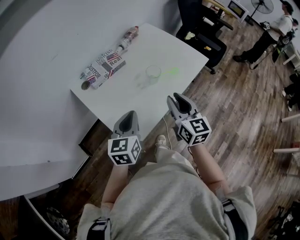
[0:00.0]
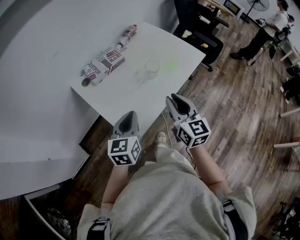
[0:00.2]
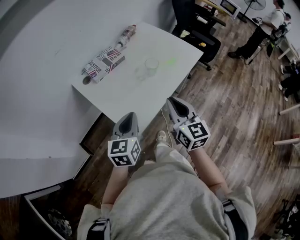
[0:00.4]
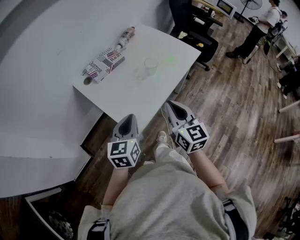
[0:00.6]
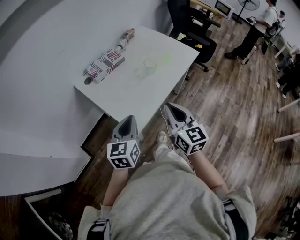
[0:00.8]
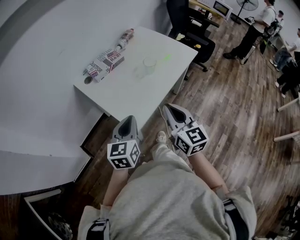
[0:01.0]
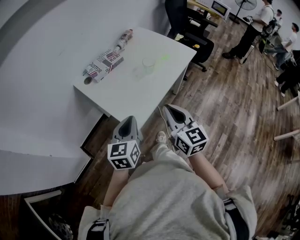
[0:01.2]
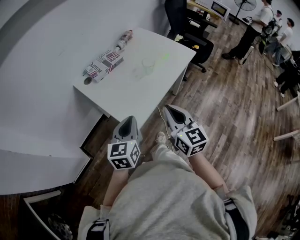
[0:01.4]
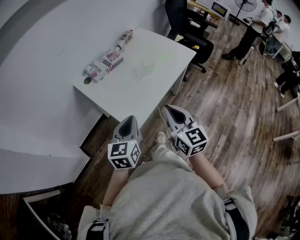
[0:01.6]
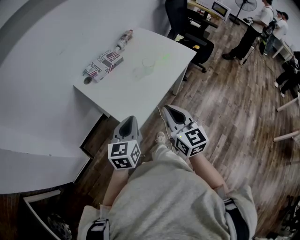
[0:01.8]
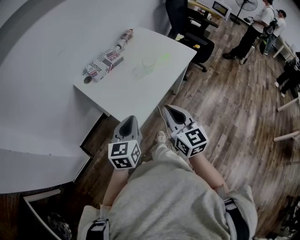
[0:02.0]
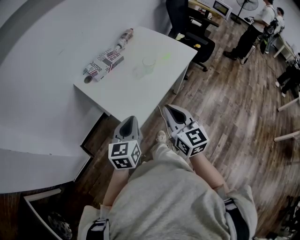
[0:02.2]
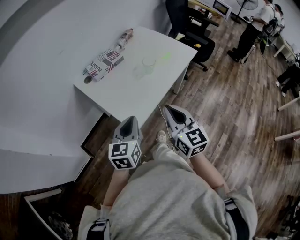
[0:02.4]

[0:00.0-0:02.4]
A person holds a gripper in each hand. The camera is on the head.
0:00.0 to 0:01.2: The grippers both shift backward by roughly 15 cm. The right gripper closes its fingers.
0:01.2 to 0:02.4: Both grippers stay put.

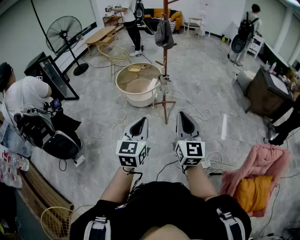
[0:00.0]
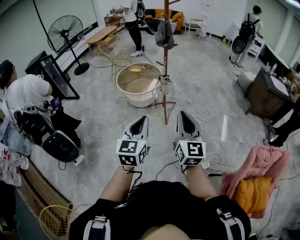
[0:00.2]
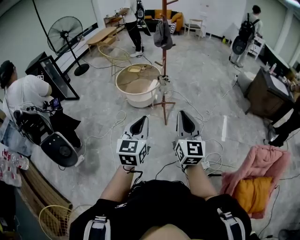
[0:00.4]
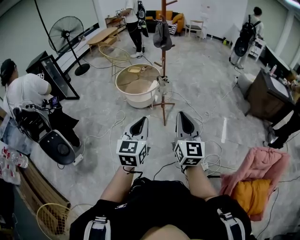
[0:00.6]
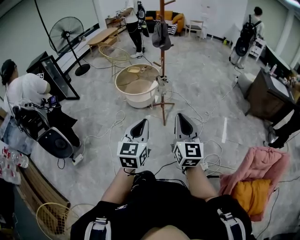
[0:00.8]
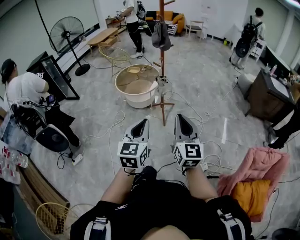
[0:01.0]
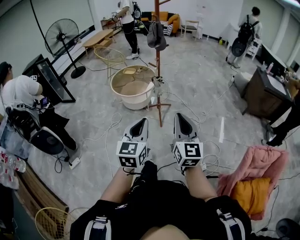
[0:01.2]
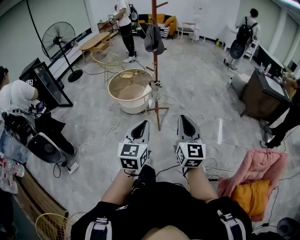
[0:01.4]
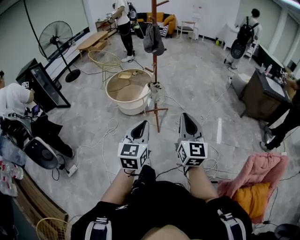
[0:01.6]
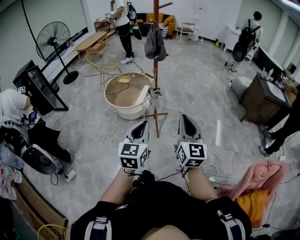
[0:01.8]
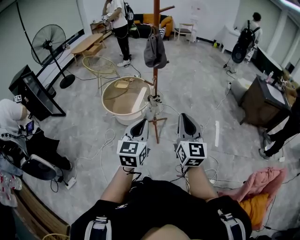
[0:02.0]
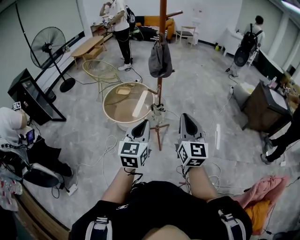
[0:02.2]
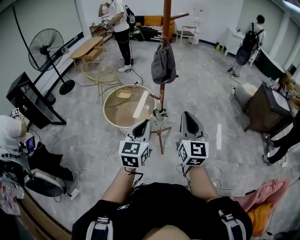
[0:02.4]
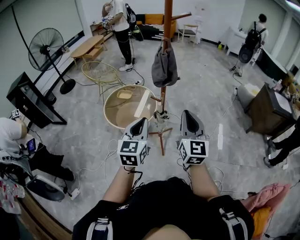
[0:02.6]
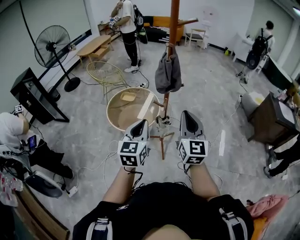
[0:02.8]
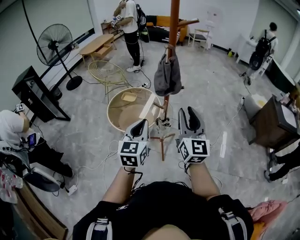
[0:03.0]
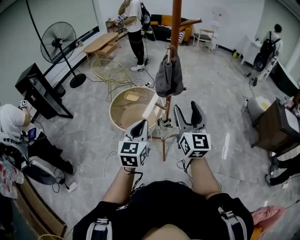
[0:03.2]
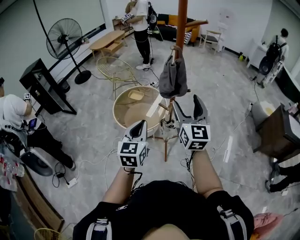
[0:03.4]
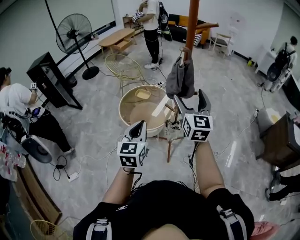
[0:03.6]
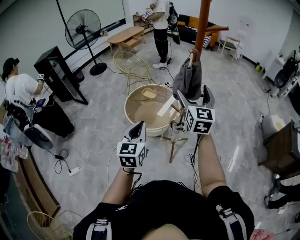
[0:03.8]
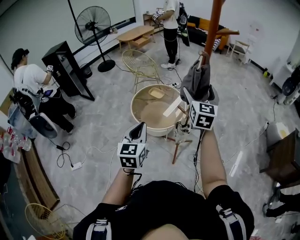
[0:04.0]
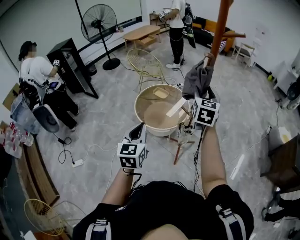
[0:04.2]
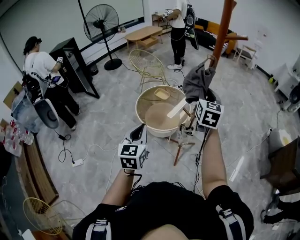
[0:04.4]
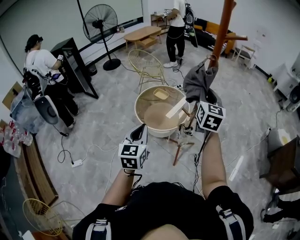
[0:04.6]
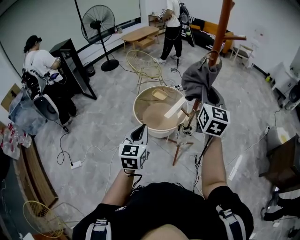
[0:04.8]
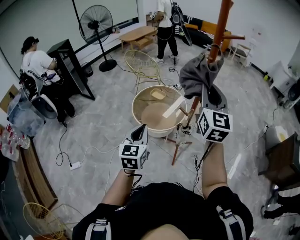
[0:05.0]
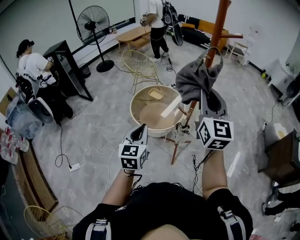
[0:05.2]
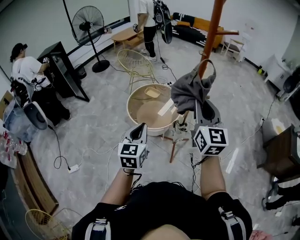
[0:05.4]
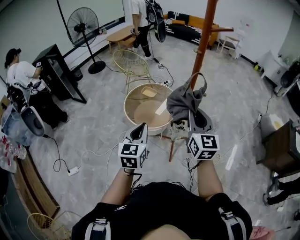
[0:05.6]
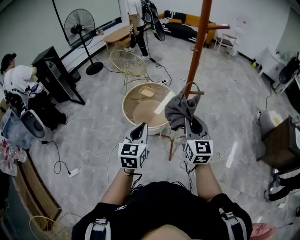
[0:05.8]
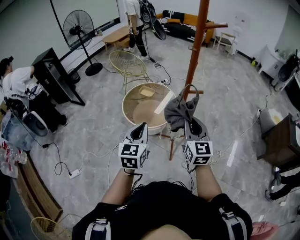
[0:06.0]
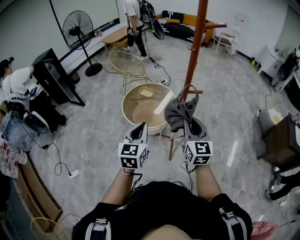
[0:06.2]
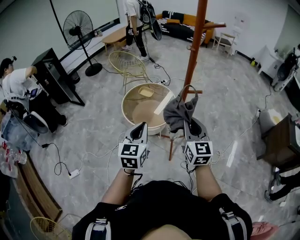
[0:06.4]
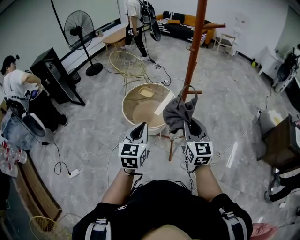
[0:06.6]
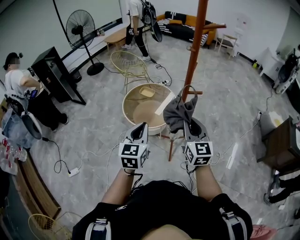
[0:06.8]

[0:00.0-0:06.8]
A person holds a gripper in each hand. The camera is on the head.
0:00.0 to 0:01.4: The grippers both shift to the right by some 10 cm.
0:01.4 to 0:02.8: The pair of grippers is taken forward, roughly 60 cm.
0:02.8 to 0:04.0: The right gripper goes about 25 cm forward, and opens, while the left gripper changes place by approximately 5 cm, and changes its angle by roughly 20 degrees.
0:04.0 to 0:05.4: The right gripper travels backward by some 10 cm, and closes its fingers.
0:05.4 to 0:06.8: The right gripper travels downward by roughly 10 cm.

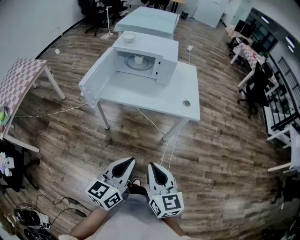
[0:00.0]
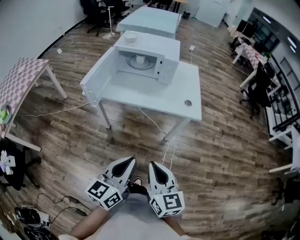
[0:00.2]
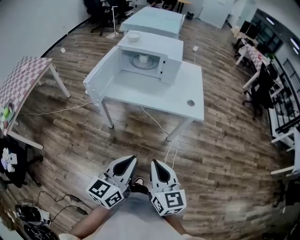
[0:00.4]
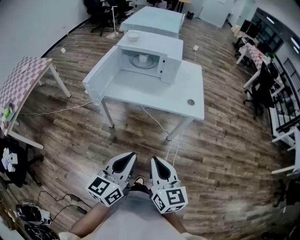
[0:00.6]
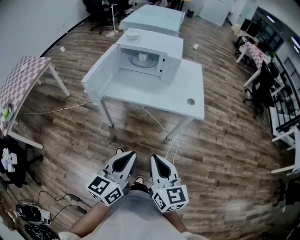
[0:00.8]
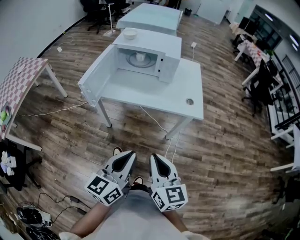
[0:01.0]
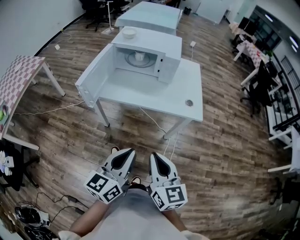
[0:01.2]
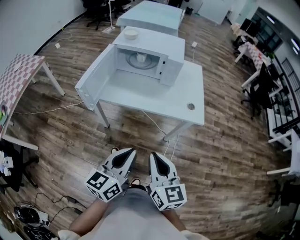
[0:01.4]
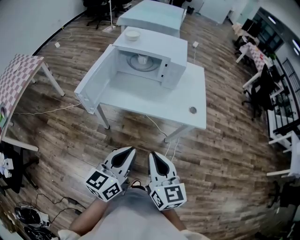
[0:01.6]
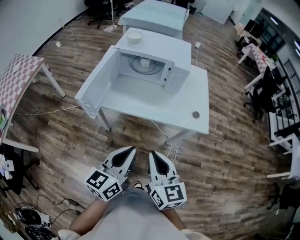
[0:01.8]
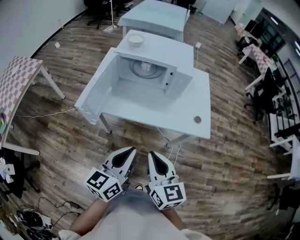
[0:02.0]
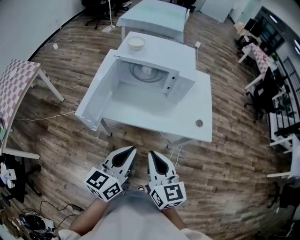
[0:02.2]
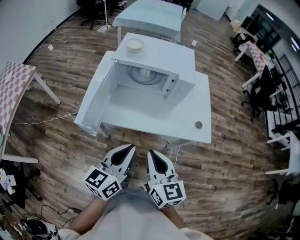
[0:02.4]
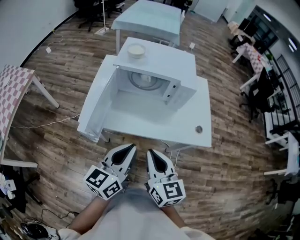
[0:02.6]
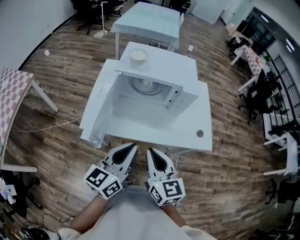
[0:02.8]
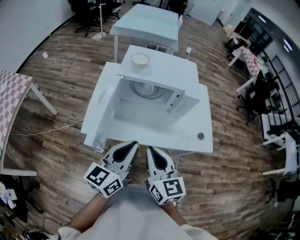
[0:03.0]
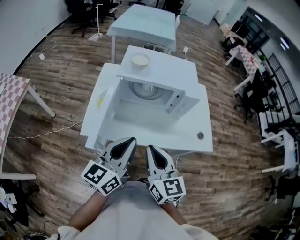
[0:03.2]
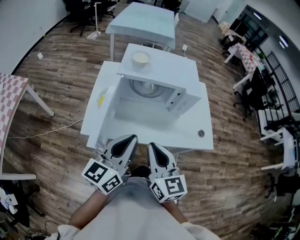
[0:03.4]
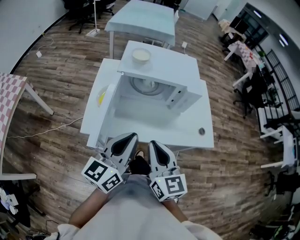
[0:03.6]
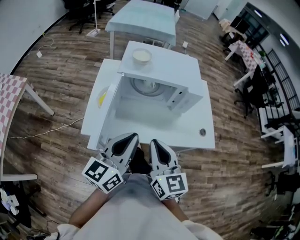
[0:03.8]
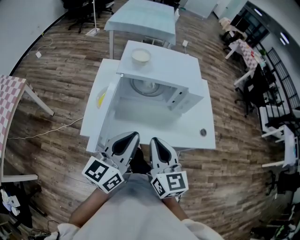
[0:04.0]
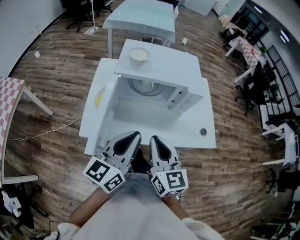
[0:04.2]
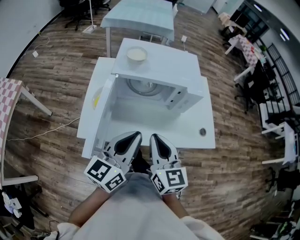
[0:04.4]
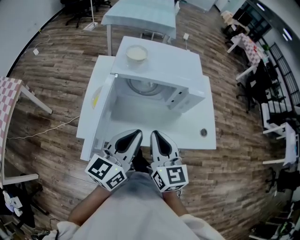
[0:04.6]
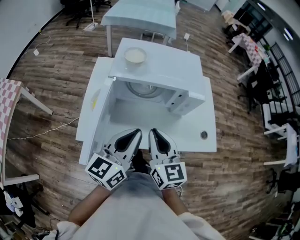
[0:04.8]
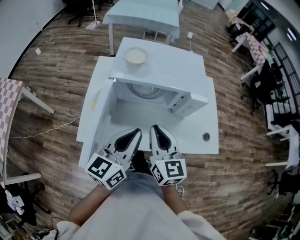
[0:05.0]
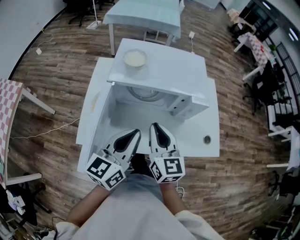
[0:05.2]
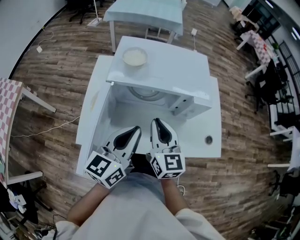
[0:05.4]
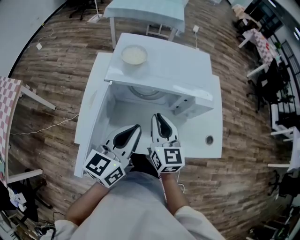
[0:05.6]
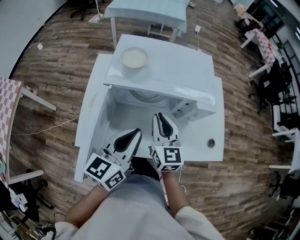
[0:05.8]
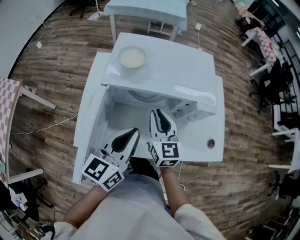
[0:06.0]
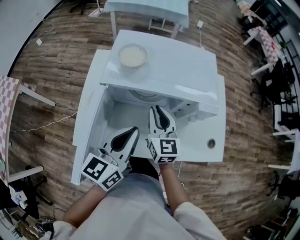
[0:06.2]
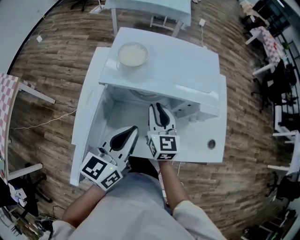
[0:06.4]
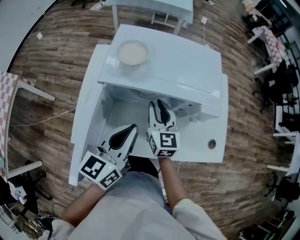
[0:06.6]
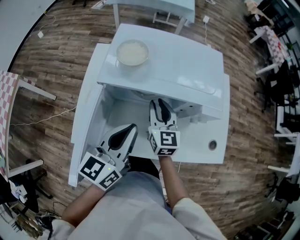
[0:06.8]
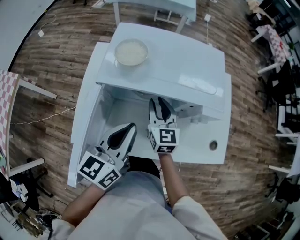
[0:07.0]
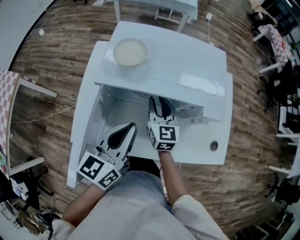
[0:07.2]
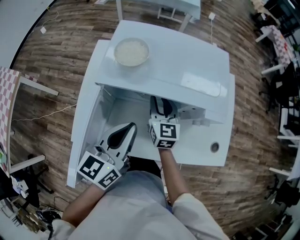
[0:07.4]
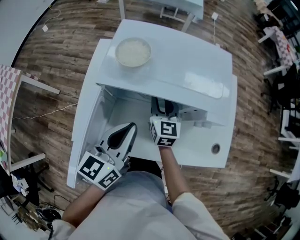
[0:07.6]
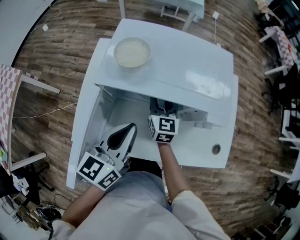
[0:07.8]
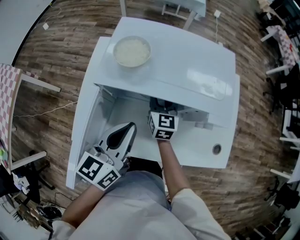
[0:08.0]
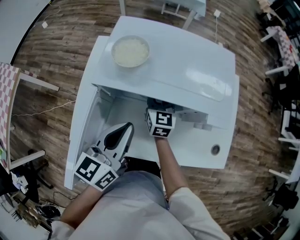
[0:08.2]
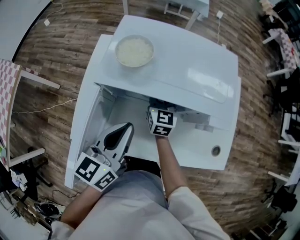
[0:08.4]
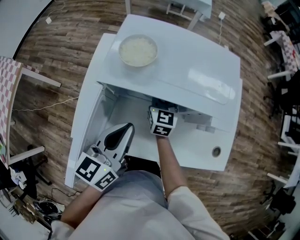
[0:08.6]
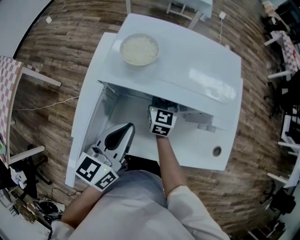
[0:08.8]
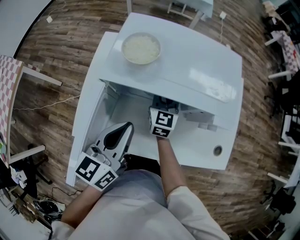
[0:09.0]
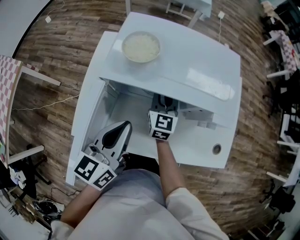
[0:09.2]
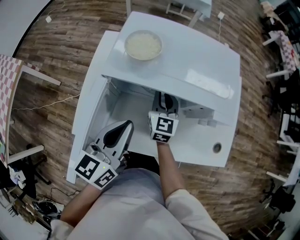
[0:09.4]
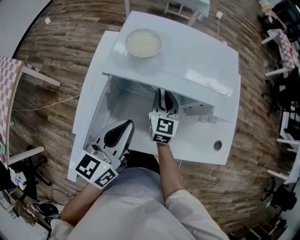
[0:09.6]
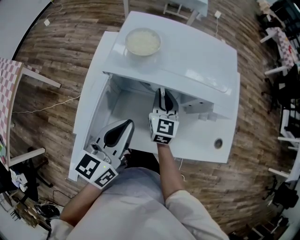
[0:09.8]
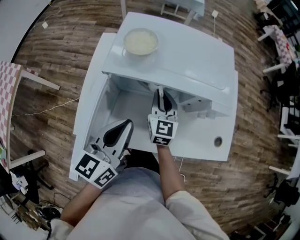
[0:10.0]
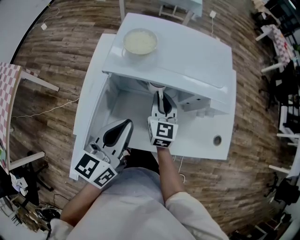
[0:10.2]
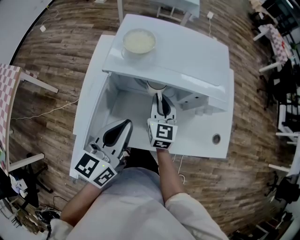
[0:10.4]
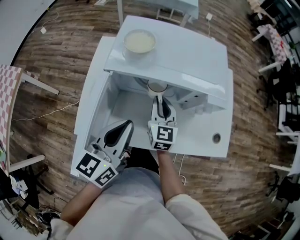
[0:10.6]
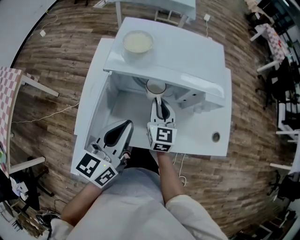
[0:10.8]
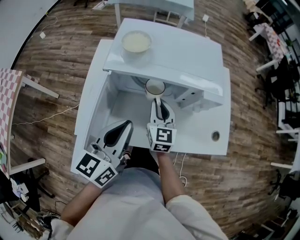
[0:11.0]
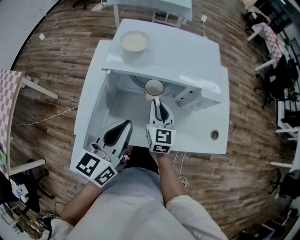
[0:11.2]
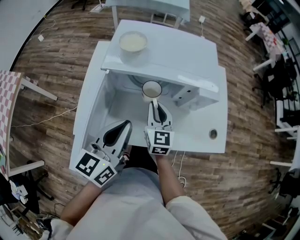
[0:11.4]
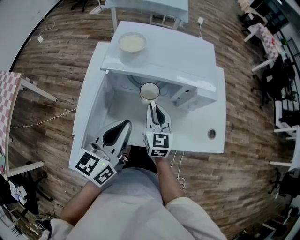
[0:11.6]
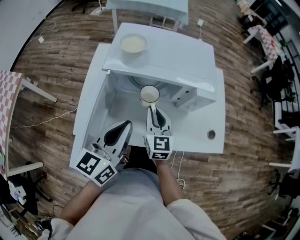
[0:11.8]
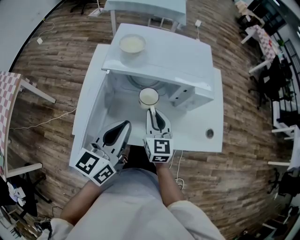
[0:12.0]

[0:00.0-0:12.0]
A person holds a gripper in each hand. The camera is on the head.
0:00.0 to 0:01.6: The grippers both shift forward by some 10 cm.
0:01.6 to 0:03.0: Both grippers move forward and to the left, some 25 cm.
0:03.0 to 0:04.4: Both grippers travel together forward, approximately 5 cm.
0:04.4 to 0:06.0: The right gripper is displaced forward and downward by some 20 cm; the left gripper goes approximately 10 cm forward.
0:06.0 to 0:07.6: The left gripper ends up roughly 5 cm from where it was. The right gripper goes about 15 cm forward and downward.
0:07.6 to 0:09.0: The grippers make only small movements.
0:09.0 to 0:10.4: The right gripper shifts roughly 10 cm backward.
0:10.4 to 0:12.0: The right gripper goes approximately 10 cm backward.

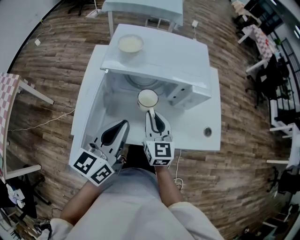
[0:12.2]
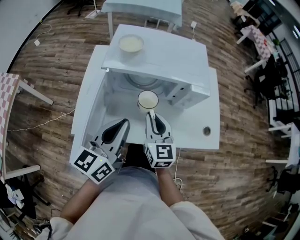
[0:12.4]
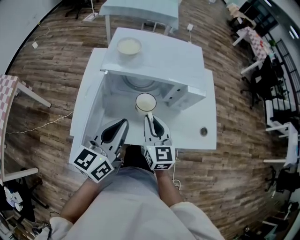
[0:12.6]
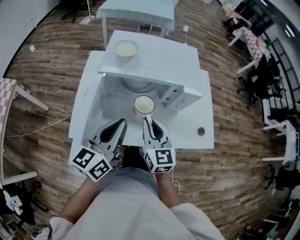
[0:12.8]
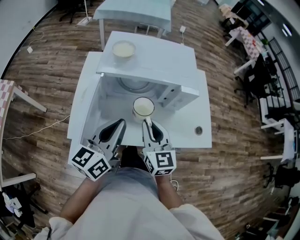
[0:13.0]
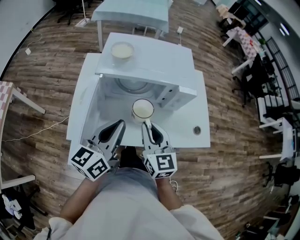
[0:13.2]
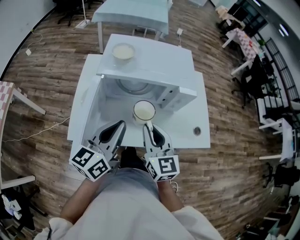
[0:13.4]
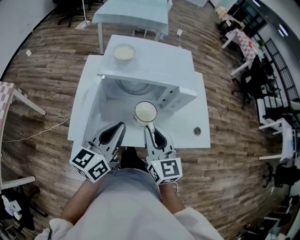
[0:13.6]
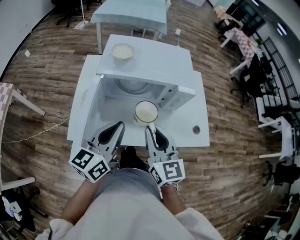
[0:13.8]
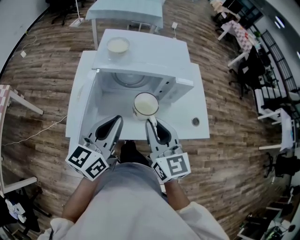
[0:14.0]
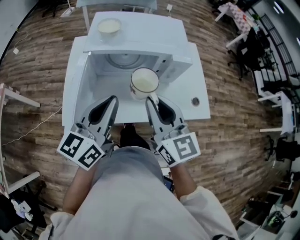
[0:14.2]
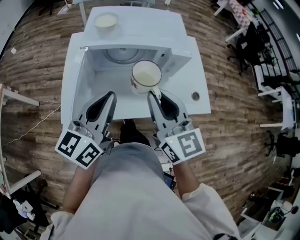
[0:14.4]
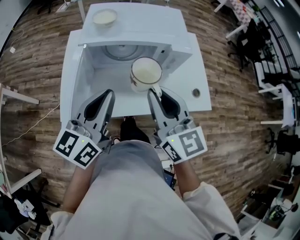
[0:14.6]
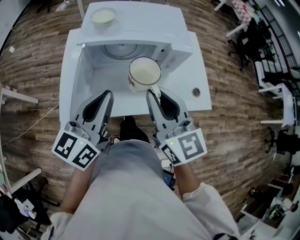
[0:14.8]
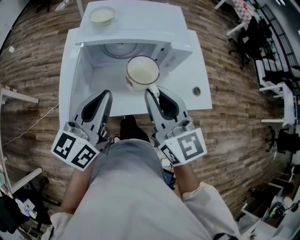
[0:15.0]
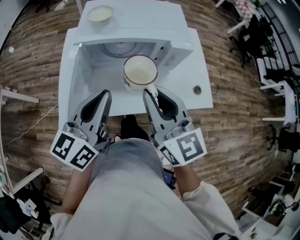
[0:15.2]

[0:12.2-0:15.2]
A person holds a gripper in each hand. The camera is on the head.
0:12.2 to 0:13.8: The right gripper goes roughly 15 cm upward and backward.
0:13.8 to 0:15.2: The right gripper heads upward, covering approximately 5 cm.
